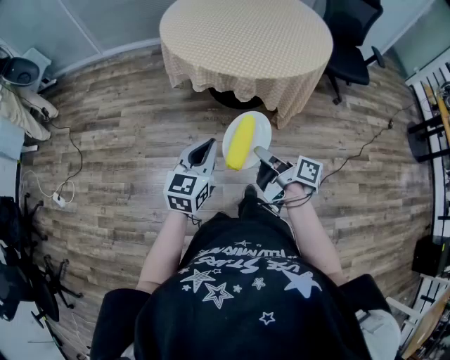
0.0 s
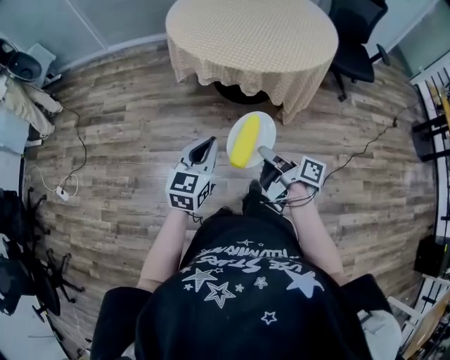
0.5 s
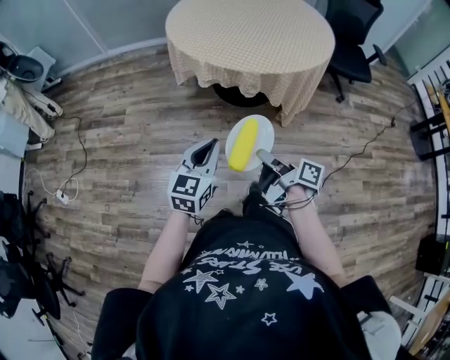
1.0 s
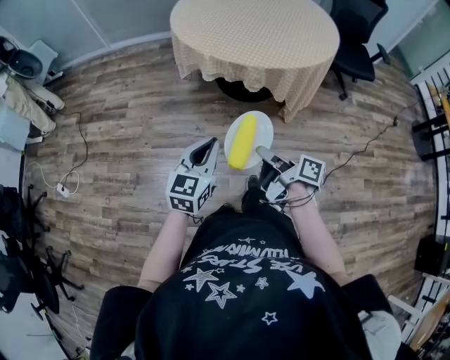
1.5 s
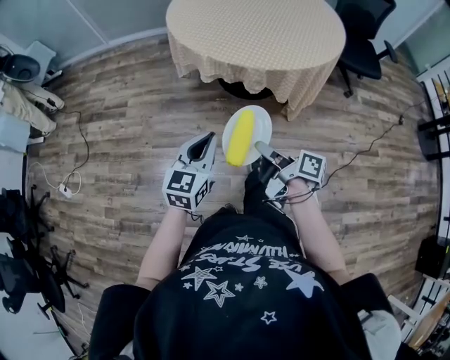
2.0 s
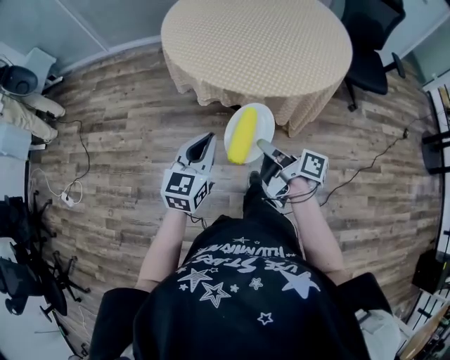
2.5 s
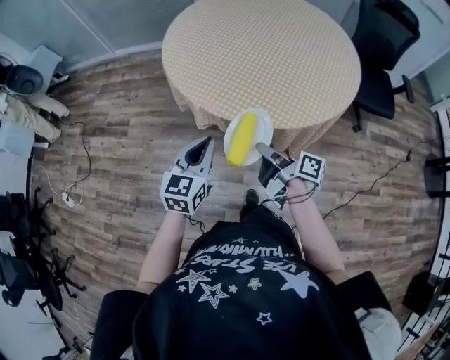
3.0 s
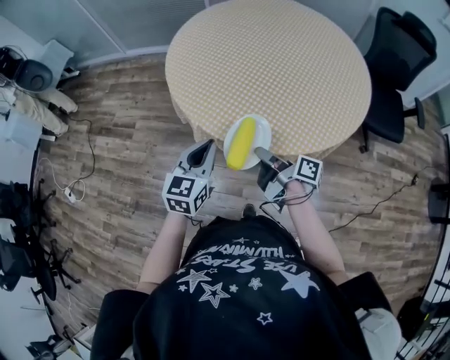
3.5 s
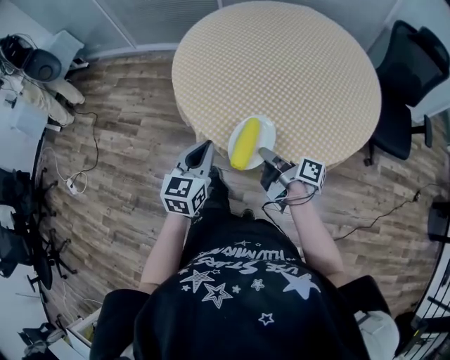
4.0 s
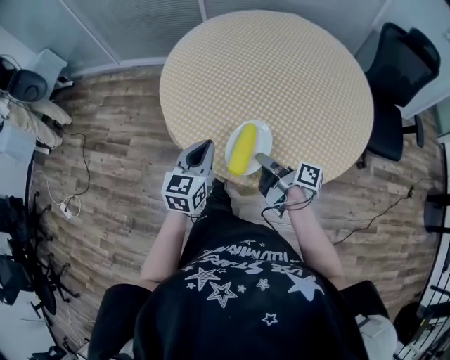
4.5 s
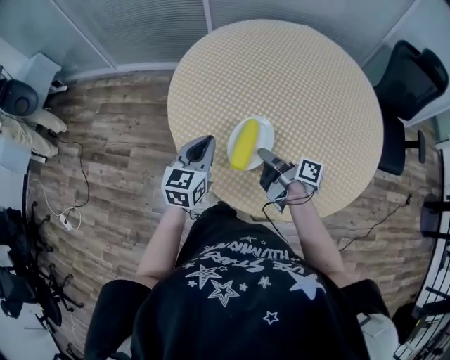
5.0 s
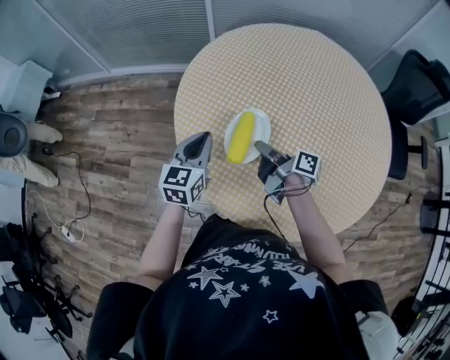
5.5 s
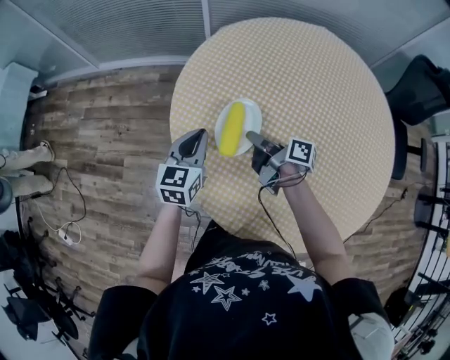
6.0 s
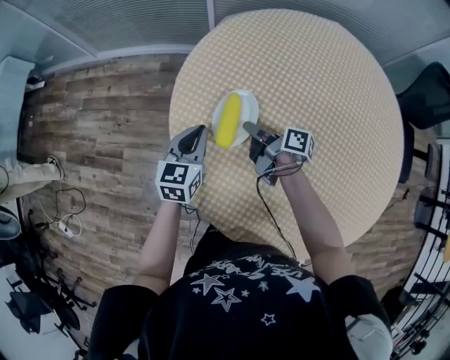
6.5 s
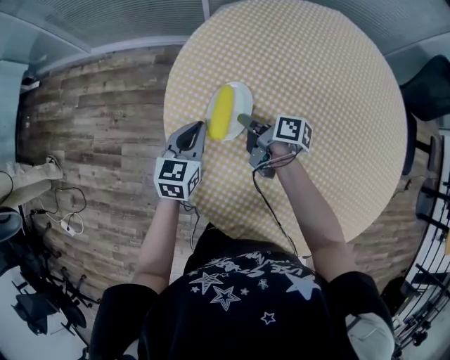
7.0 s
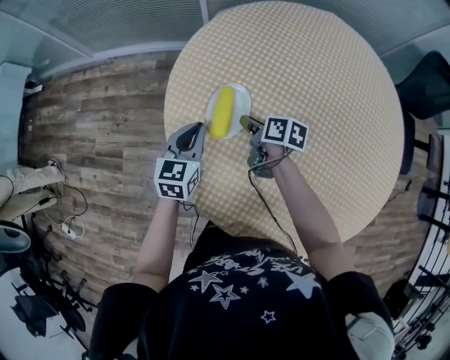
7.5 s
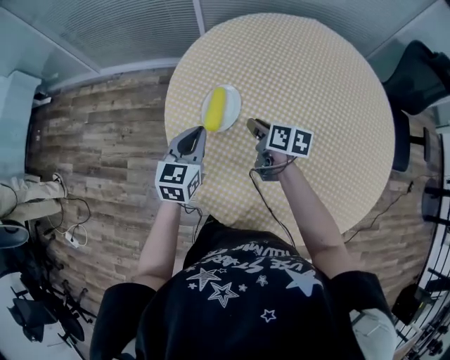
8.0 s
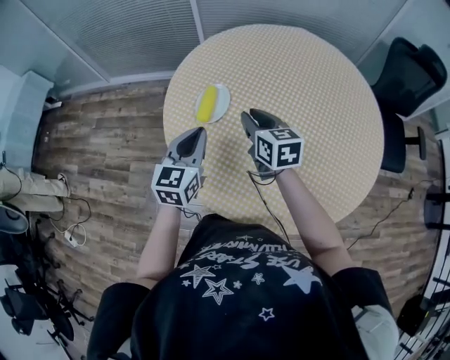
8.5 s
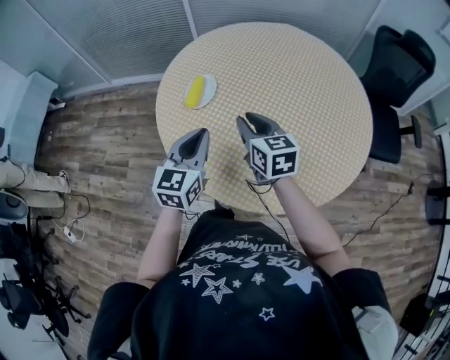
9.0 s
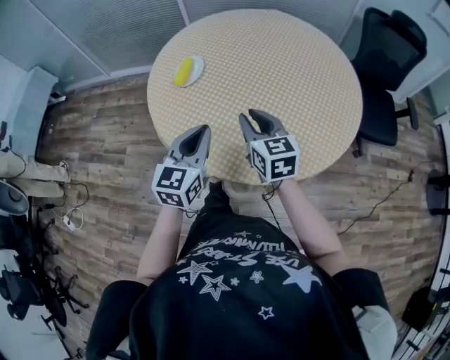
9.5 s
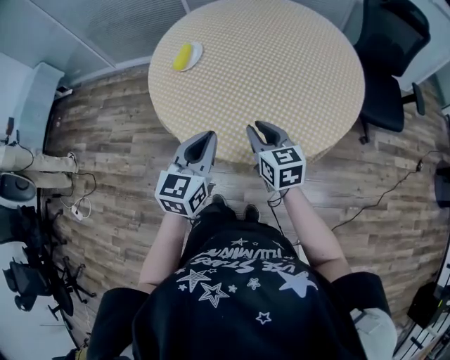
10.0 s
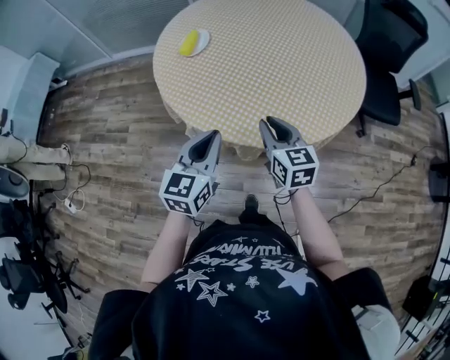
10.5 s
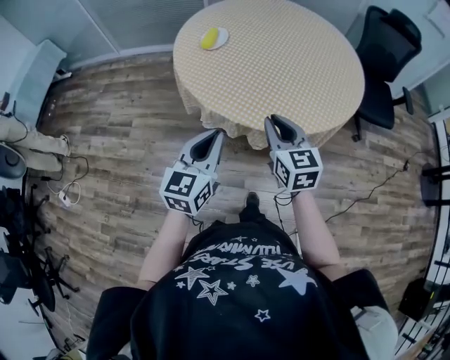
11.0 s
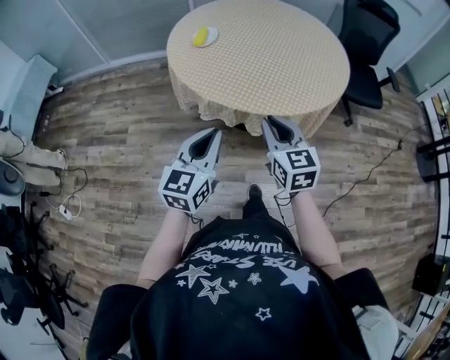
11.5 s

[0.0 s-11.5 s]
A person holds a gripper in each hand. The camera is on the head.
2.0 to 4.0 s: The left gripper is displaced forward by about 30 cm. Meanwhile the right gripper heads forward and to the right, covering about 35 cm.
4.0 to 6.0 s: Both grippers are carried forward, about 40 cm.
6.0 to 7.5 s: The right gripper shifts about 10 cm downward and forward, and turns by approximately 30 degrees. The left gripper shifts by some 5 cm.
7.5 to 9.5 s: The left gripper goes about 40 cm backward, to the right and upward; the right gripper shifts roughly 40 cm backward, upward and to the right, and rotates around the line of its fingers by approximately 50 degrees, counterclockwise from behind.
9.5 to 11.5 s: Both grippers travel together backward, roughly 30 cm.

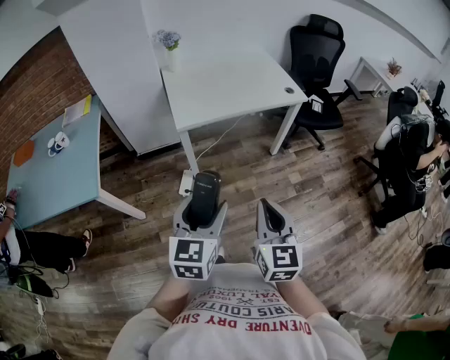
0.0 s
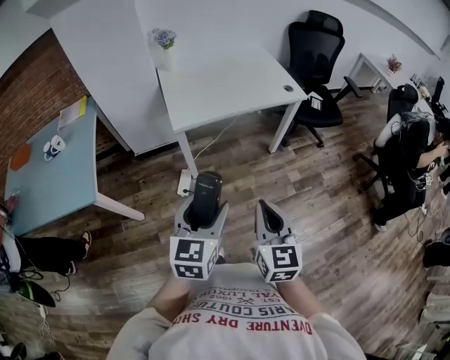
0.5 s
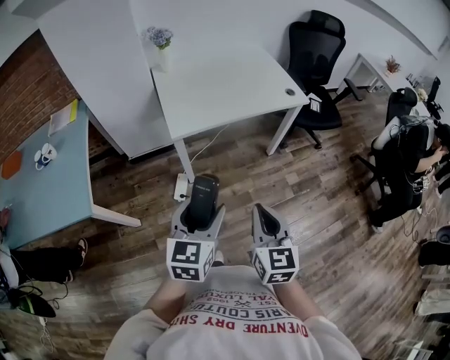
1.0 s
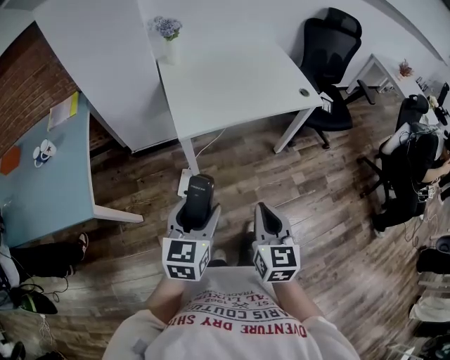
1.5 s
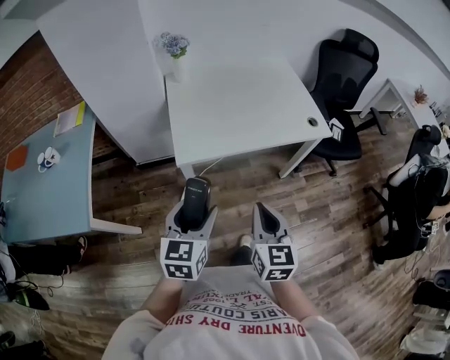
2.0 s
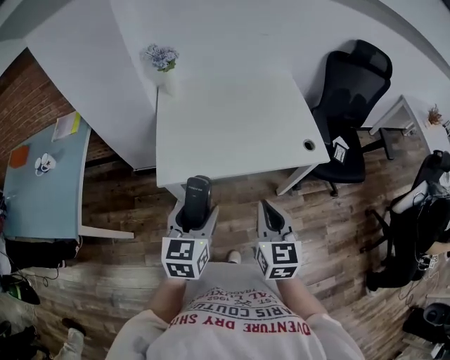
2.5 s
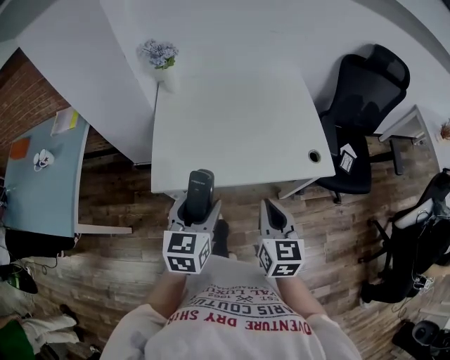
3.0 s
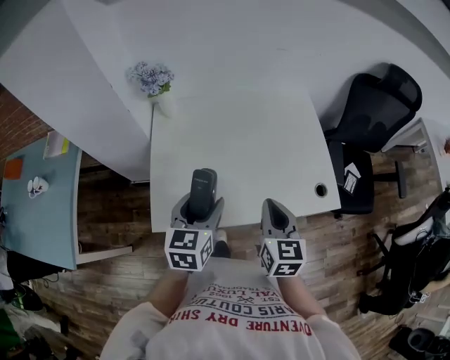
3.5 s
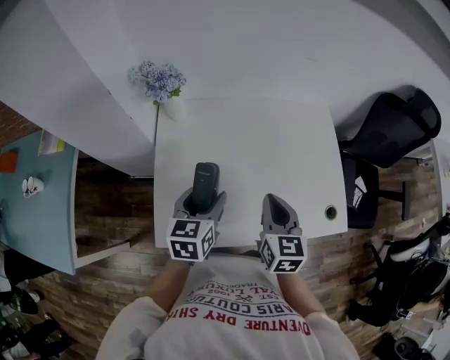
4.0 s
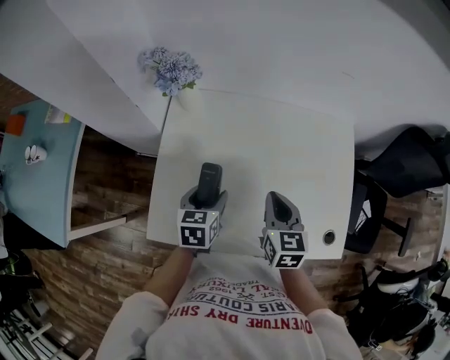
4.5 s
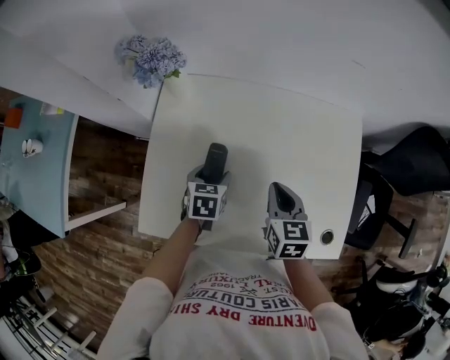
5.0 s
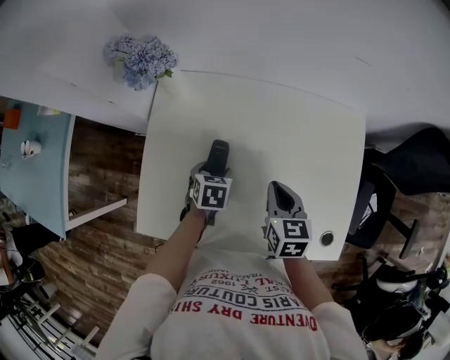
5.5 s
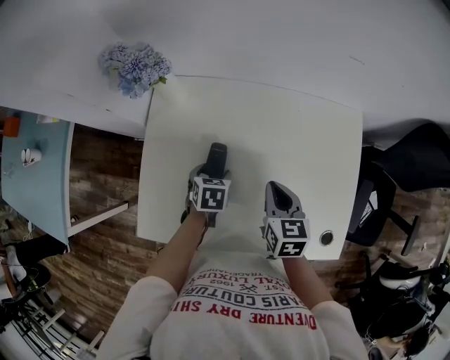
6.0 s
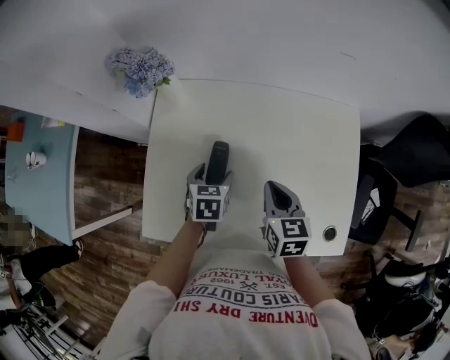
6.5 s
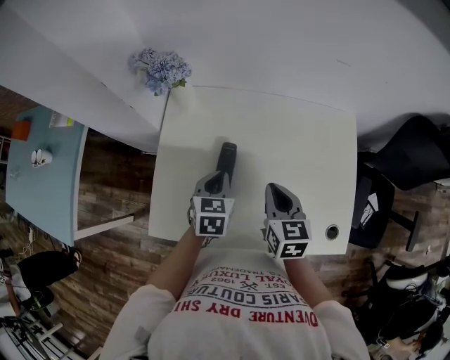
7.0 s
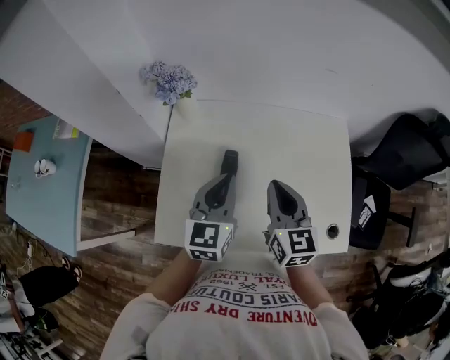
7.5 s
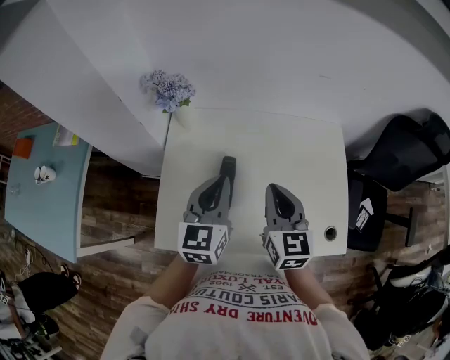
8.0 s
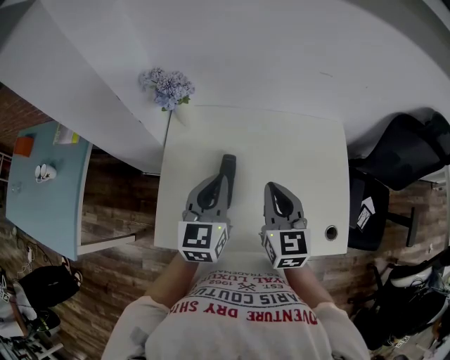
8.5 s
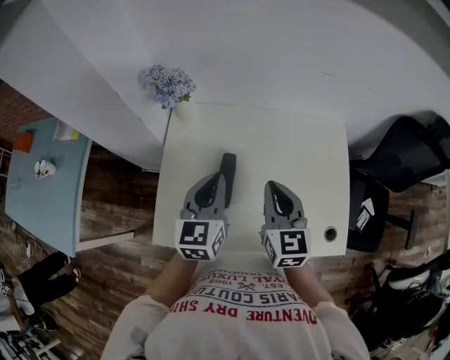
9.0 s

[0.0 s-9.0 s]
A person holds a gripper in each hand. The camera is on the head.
0.0 to 2.0 s: The grippers both shift forward by about 25 cm.
2.0 to 4.5 s: The two grippers travel together, forward, approximately 50 cm. The right gripper changes its angle by approximately 20 degrees; the left gripper turns by about 30 degrees.
4.5 to 7.0 s: The left gripper reaches approximately 10 cm downward, then returns, and closes its fingers.
7.0 to 9.0 s: The two grippers go some 10 cm upward. The left gripper swivels roughly 30 degrees.

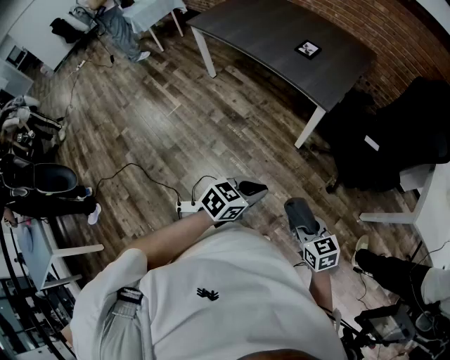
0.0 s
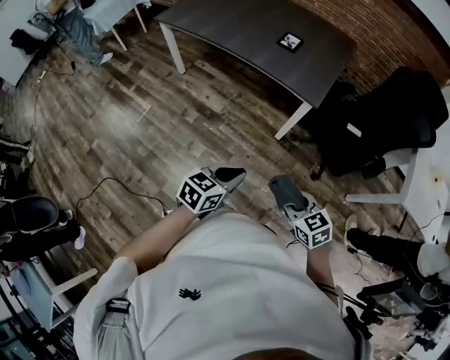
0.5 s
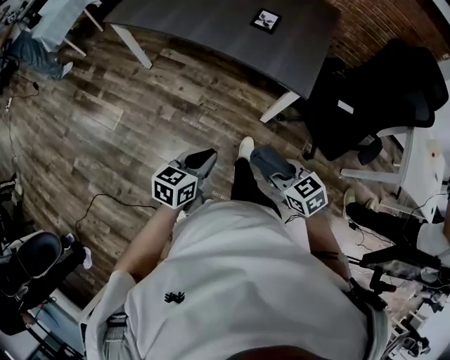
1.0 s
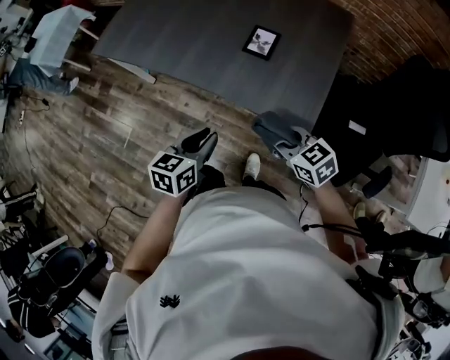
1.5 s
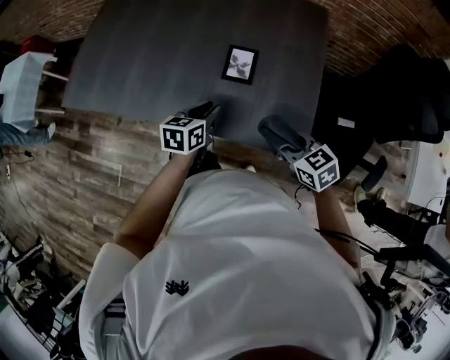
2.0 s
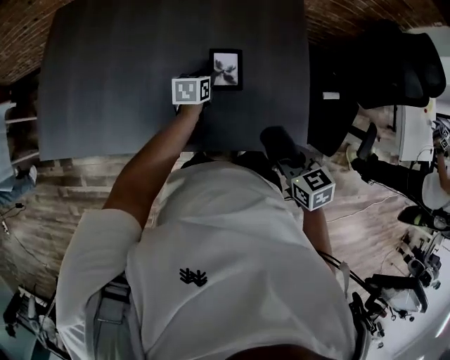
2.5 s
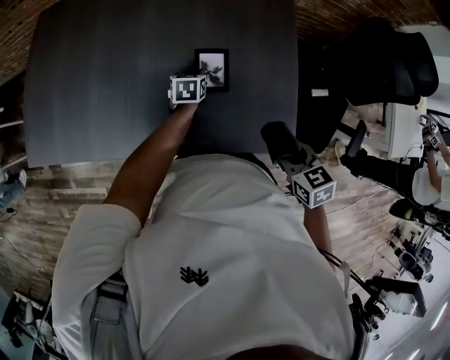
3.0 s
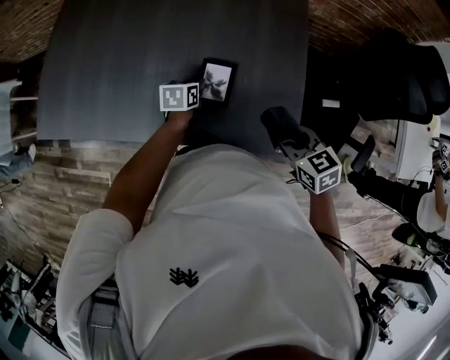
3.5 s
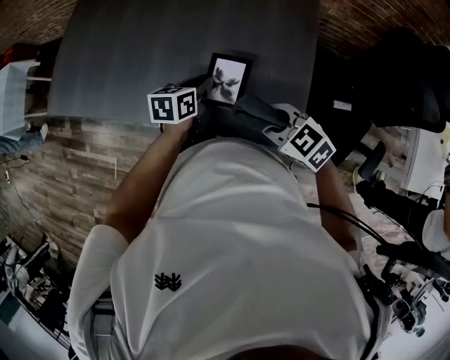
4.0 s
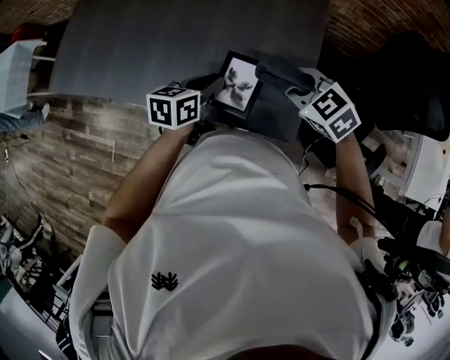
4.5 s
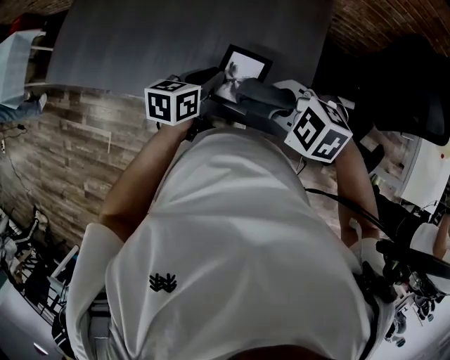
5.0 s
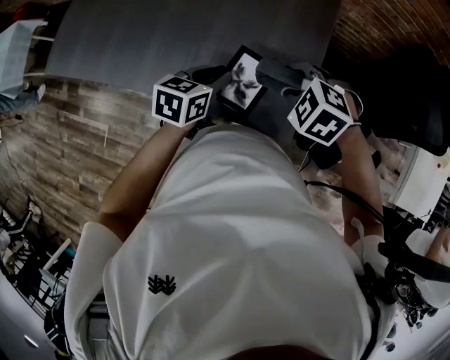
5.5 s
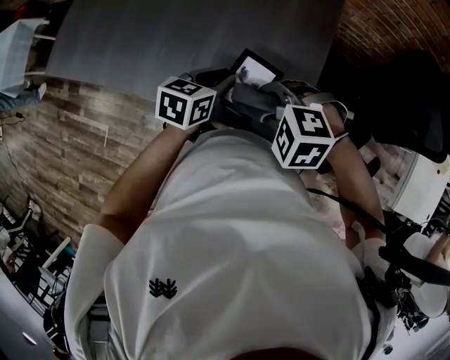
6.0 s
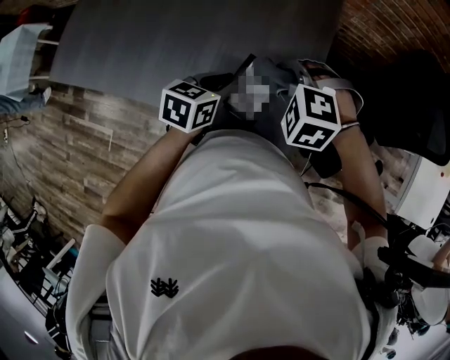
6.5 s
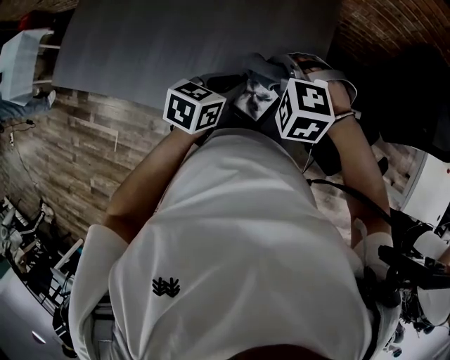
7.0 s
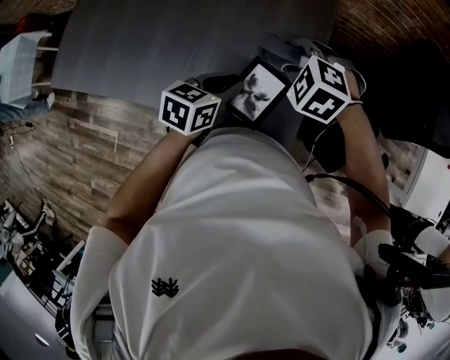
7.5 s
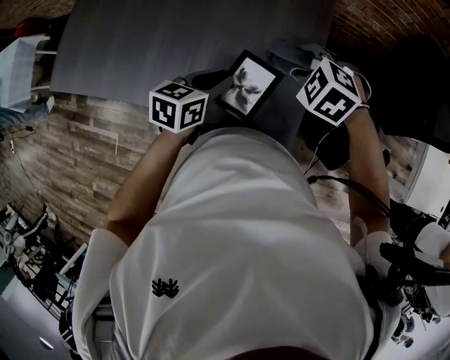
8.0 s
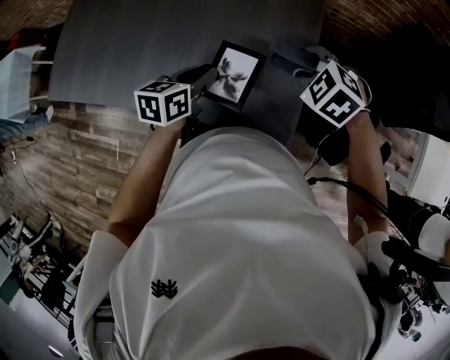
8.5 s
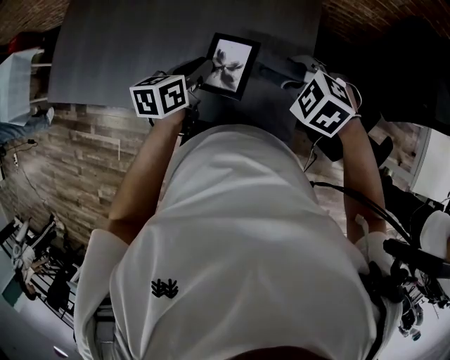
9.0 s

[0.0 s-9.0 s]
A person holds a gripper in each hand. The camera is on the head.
0.0 to 2.0 s: The pair of grippers is taken forward, about 70 cm.
2.0 to 4.5 s: The right gripper travels forward by roughly 10 cm, and swivels approximately 20 degrees; the left gripper moves to the right, some 5 cm, and travels forward and back again, approximately 20 cm each way.
4.5 to 7.0 s: The left gripper goes approximately 5 cm to the right. Meanwhile the right gripper goes forward and backward, some 10 cm each way, reversing 3 times, and swivels approximately 40 degrees.
7.0 to 9.0 s: The right gripper is displaced to the right by some 5 cm, and turns by roughly 20 degrees. The left gripper is displaced to the left by roughly 5 cm.
